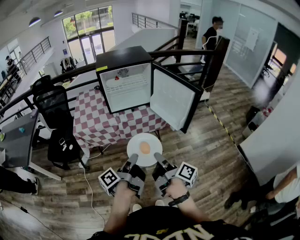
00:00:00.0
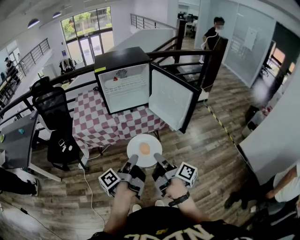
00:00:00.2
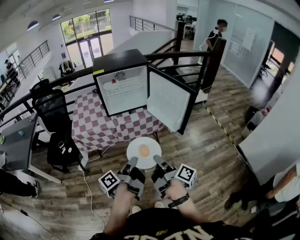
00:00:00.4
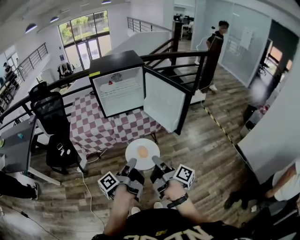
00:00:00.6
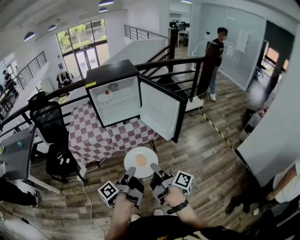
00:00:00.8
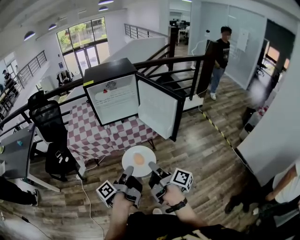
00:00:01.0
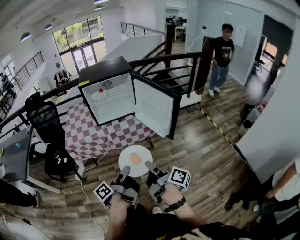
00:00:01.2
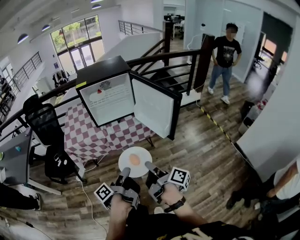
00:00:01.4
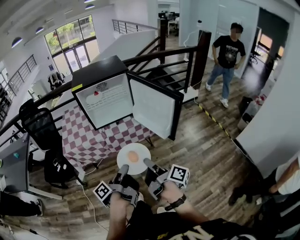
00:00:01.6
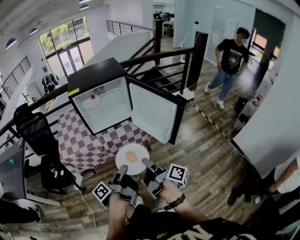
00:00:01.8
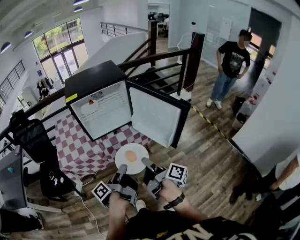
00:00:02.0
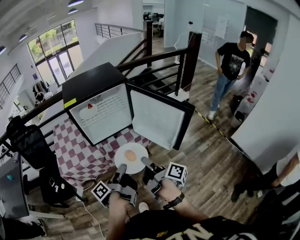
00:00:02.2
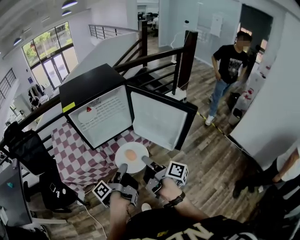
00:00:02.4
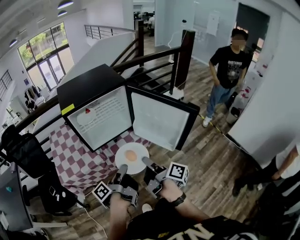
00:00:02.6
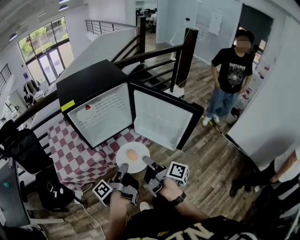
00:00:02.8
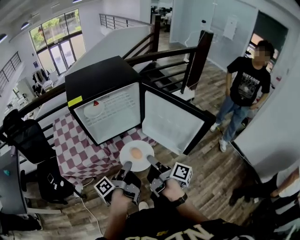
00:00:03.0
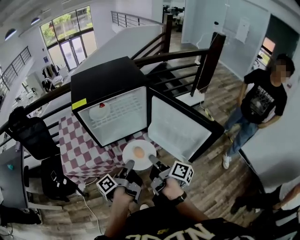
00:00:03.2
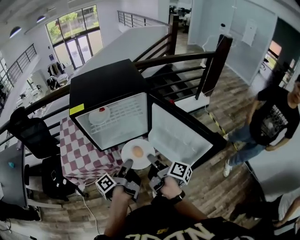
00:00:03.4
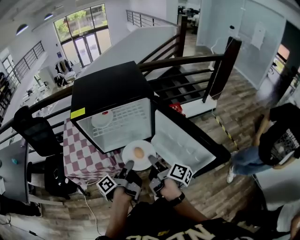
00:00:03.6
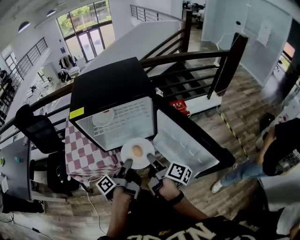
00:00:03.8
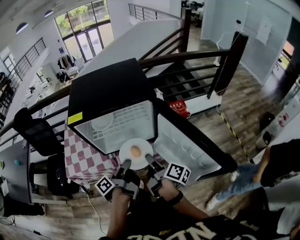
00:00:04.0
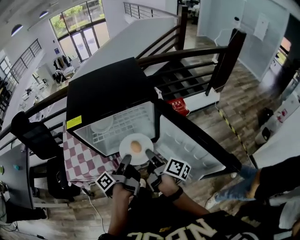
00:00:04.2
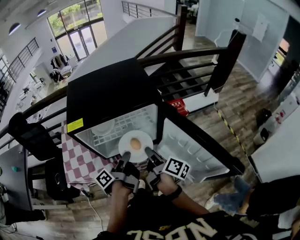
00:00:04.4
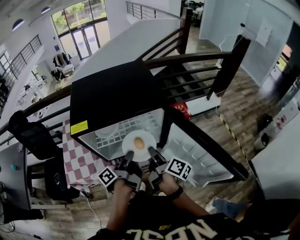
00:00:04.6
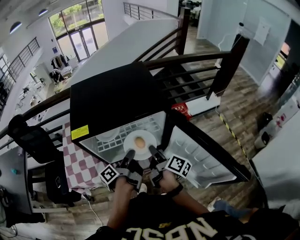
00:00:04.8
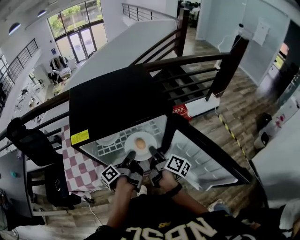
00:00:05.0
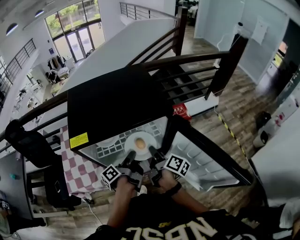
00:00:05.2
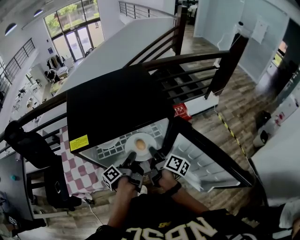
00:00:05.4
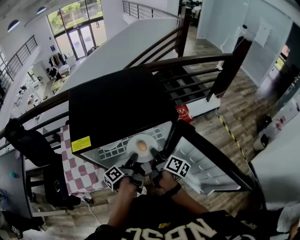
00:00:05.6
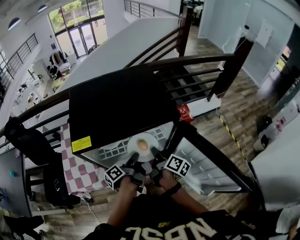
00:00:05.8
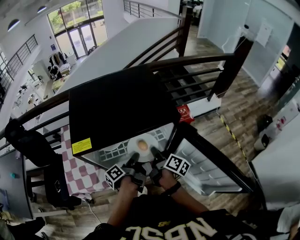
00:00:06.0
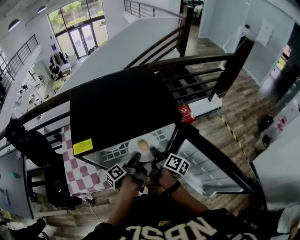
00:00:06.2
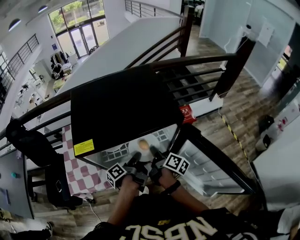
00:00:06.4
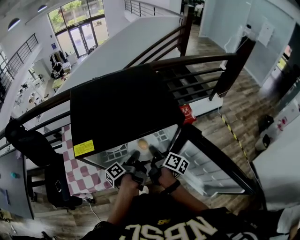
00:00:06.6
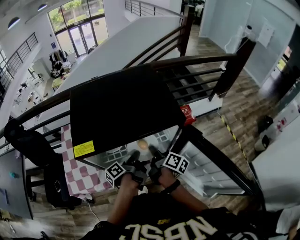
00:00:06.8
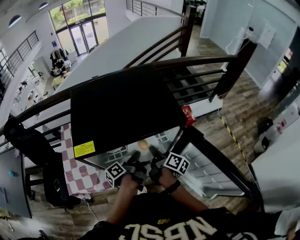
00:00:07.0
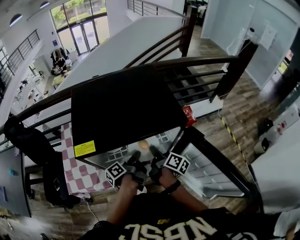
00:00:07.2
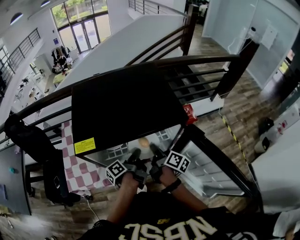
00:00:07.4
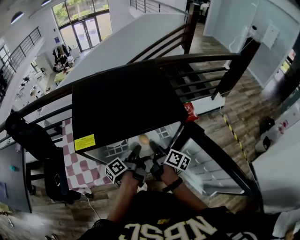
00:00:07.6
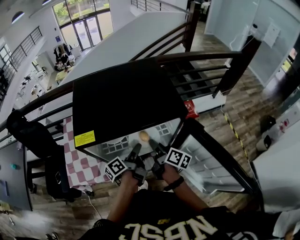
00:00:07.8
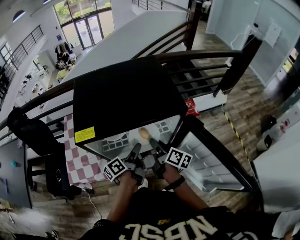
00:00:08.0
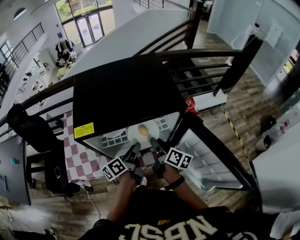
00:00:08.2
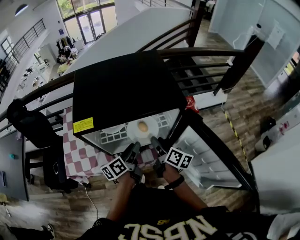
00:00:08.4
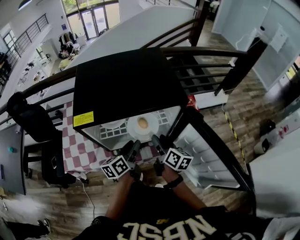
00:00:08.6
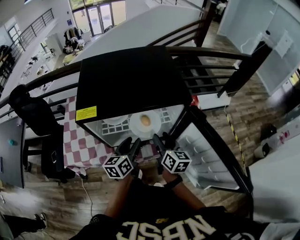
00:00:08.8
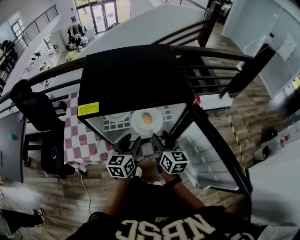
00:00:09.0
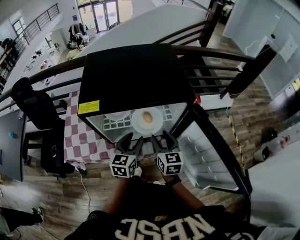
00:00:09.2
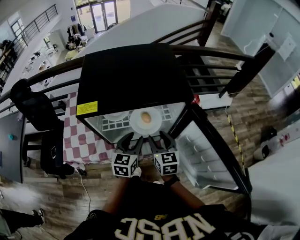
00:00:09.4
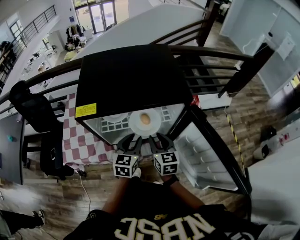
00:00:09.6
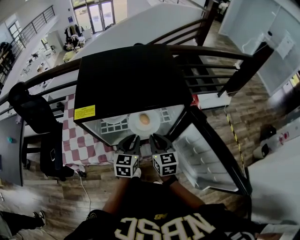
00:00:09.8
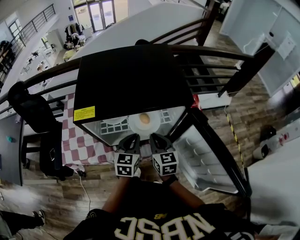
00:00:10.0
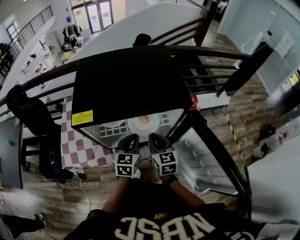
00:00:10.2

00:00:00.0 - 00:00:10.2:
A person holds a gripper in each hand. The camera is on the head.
00:00:00.0 - 00:00:01.4: The right gripper changes place by about 5 cm.
00:00:01.4 - 00:00:03.0: The right gripper moves roughly 25 cm.
00:00:03.0 - 00:00:04.4: The right gripper changes place by some 25 cm.
00:00:04.4 - 00:00:05.8: The right gripper moves roughly 10 cm.
00:00:07.2 - 00:00:08.8: The right gripper shifts by roughly 5 cm, twists roughly 40 degrees counterclockwise, seen from behind, and opens.
00:00:08.8 - 00:00:10.2: The right gripper swivels about 30 degrees, and closes its fingers.

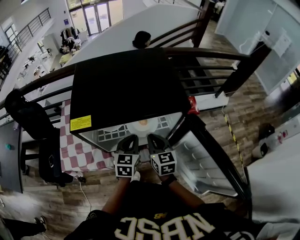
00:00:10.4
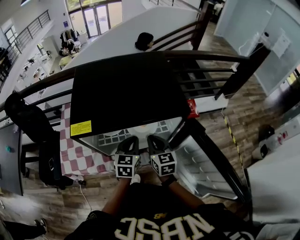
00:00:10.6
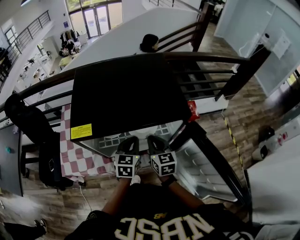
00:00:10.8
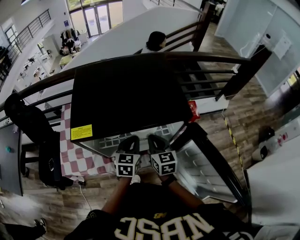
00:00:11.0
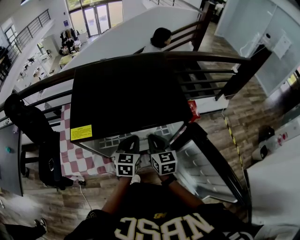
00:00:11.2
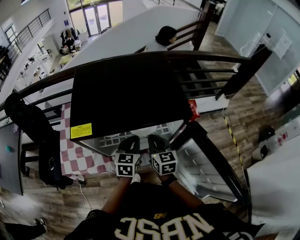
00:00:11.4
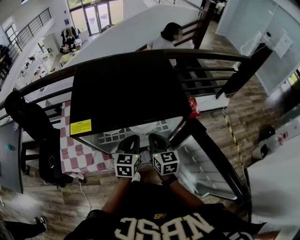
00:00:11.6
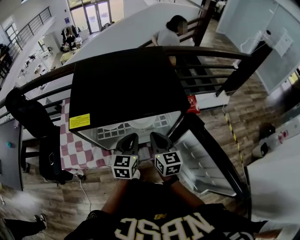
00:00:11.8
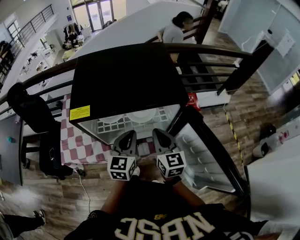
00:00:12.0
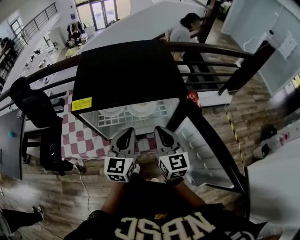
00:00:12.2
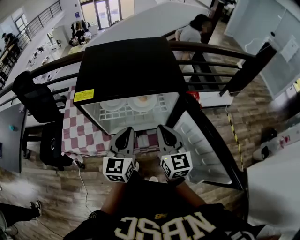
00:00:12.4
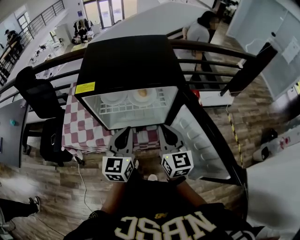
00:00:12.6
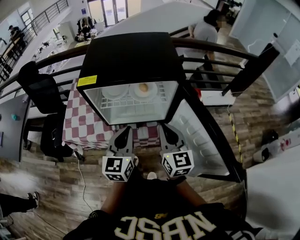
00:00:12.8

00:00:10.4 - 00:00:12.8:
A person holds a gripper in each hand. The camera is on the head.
00:00:11.6 - 00:00:12.8: The right gripper shifts by about 20 cm.

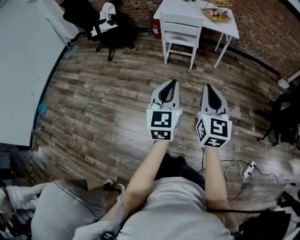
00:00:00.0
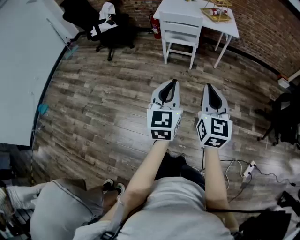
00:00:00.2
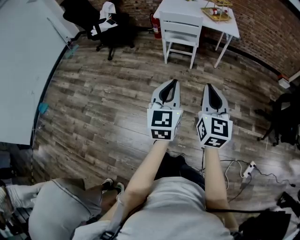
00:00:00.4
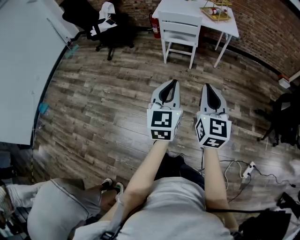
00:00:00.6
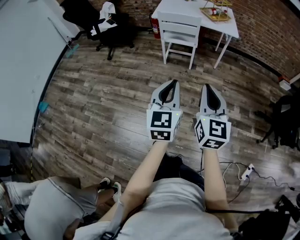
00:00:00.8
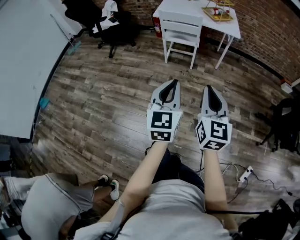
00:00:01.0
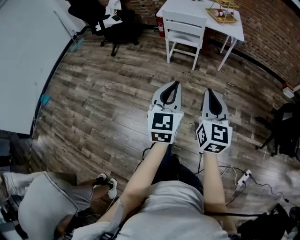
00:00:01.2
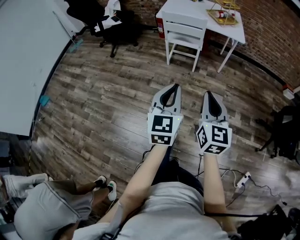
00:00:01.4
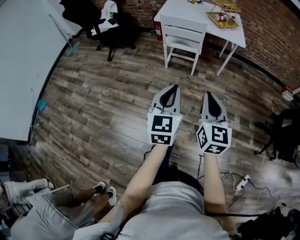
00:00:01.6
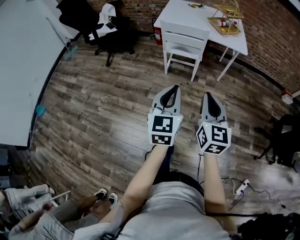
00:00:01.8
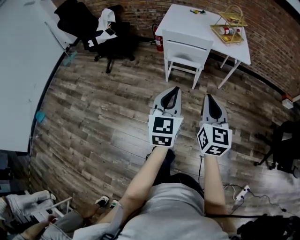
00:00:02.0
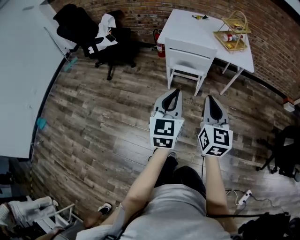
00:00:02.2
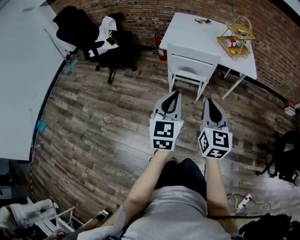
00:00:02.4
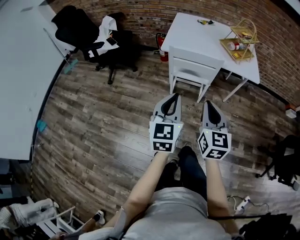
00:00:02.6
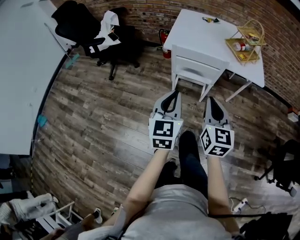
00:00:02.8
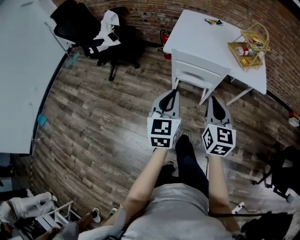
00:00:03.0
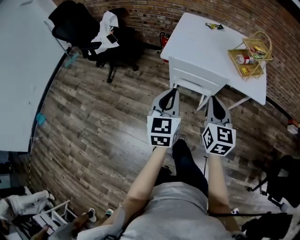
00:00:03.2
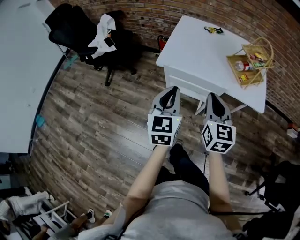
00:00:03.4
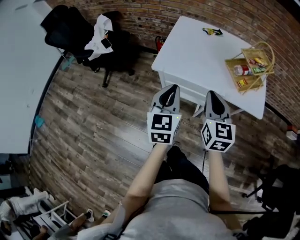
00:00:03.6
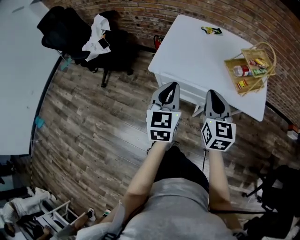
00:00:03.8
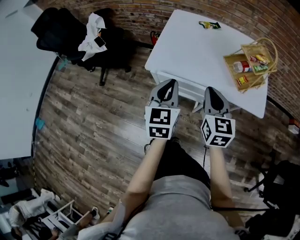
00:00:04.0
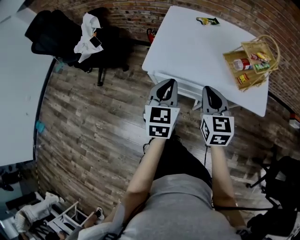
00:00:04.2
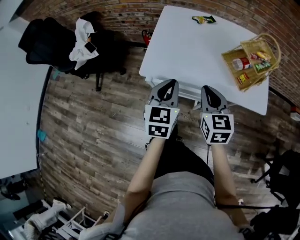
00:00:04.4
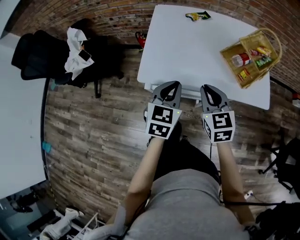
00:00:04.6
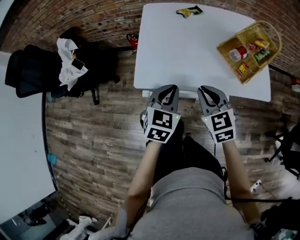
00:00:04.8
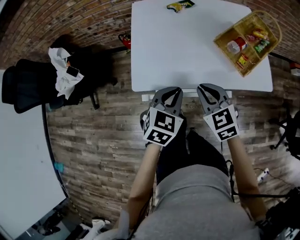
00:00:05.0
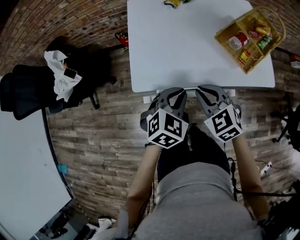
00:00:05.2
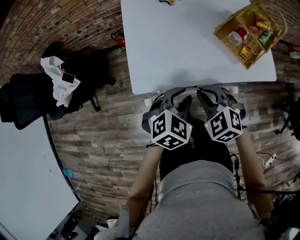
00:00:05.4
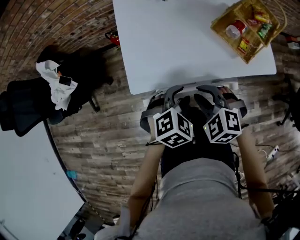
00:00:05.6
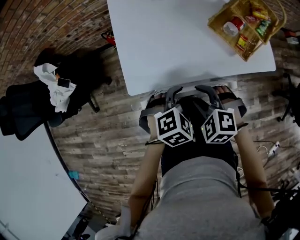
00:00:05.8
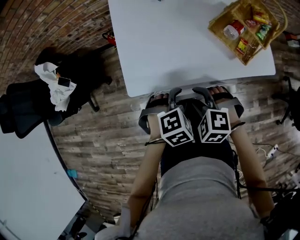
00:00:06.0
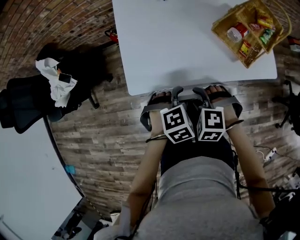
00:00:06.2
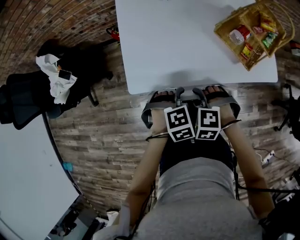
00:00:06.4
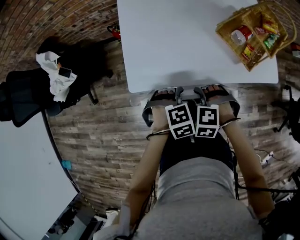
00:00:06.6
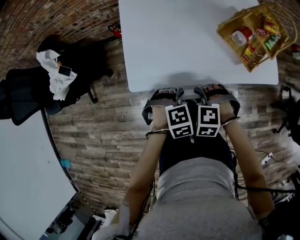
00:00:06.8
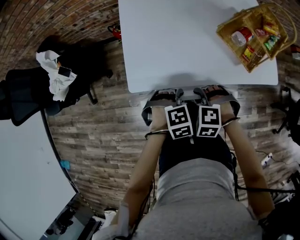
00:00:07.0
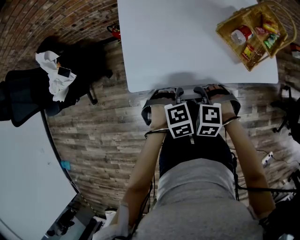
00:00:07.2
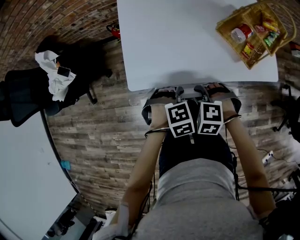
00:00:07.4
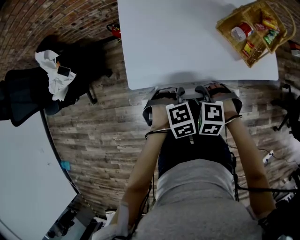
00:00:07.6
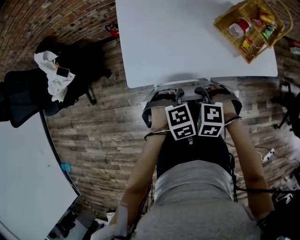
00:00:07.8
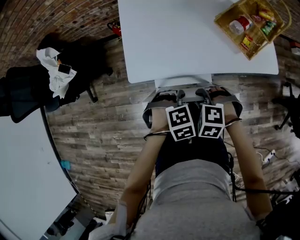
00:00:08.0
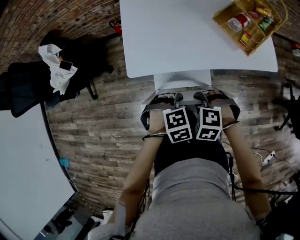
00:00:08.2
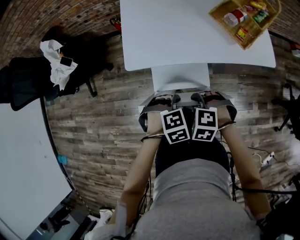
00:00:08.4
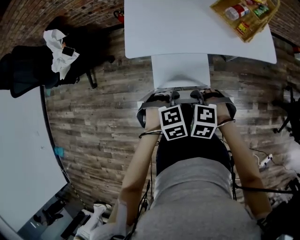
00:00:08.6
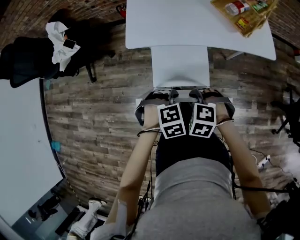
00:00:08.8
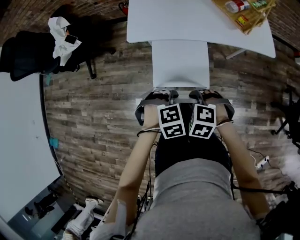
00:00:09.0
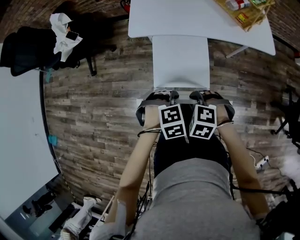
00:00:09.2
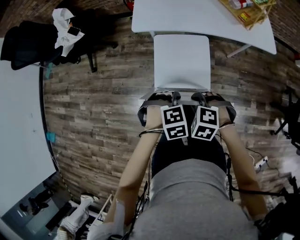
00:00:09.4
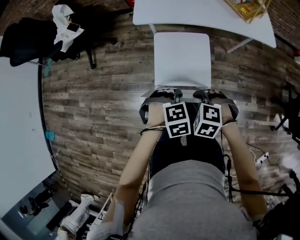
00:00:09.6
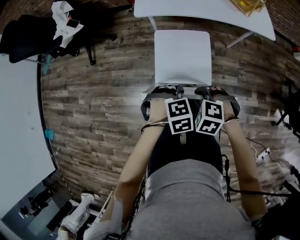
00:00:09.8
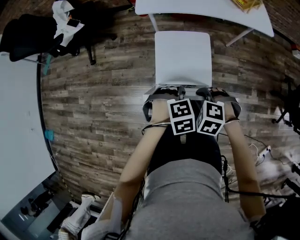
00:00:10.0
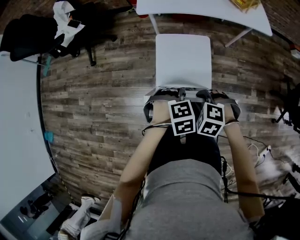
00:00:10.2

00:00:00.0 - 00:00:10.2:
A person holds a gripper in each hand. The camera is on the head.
00:00:00.0 - 00:00:01.4: The grippers both shift to the right by some 5 cm.
00:00:01.4 - 00:00:03.0: The pair of grippers is taken forward, about 40 cm.
00:00:03.0 - 00:00:04.4: The grippers both shift forward by approximately 30 cm.
00:00:04.4 - 00:00:05.8: The grippers both shift downward by about 10 cm. The right gripper tilts its fingers some 30 degrees downward, and opens up, while the left gripper tilts its fingers about 40 degrees downward, and opens its fingers.
00:00:05.8 - 00:00:07.2: The two grippers go approximately 5 cm downward. The right gripper closes up.
00:00:07.2 - 00:00:08.8: The right gripper shifts by approximately 20 cm. The left gripper changes place by approximately 20 cm.
00:00:08.8 - 00:00:10.2: The left gripper changes place by about 20 cm. The right gripper ends up some 20 cm from where it was.

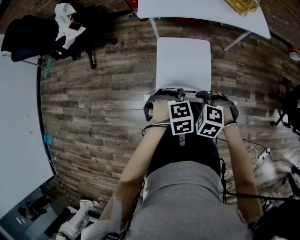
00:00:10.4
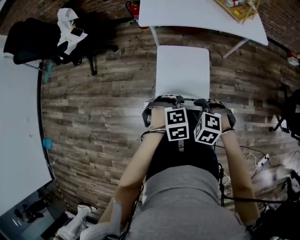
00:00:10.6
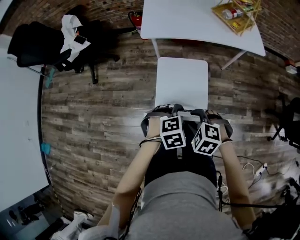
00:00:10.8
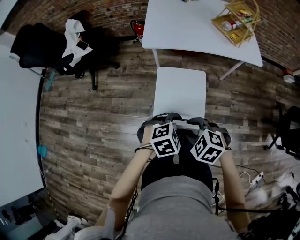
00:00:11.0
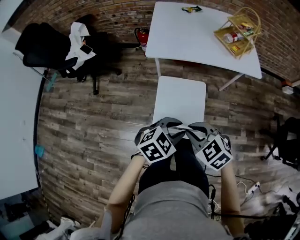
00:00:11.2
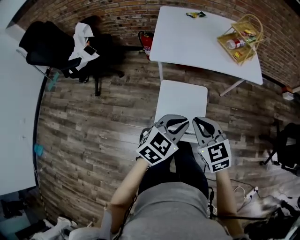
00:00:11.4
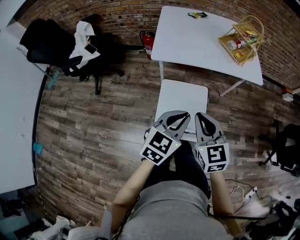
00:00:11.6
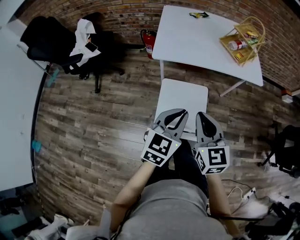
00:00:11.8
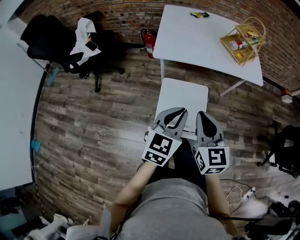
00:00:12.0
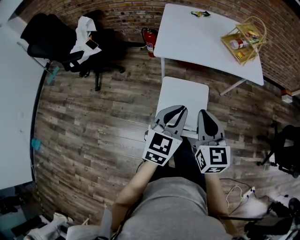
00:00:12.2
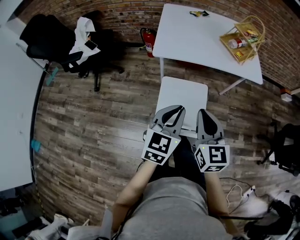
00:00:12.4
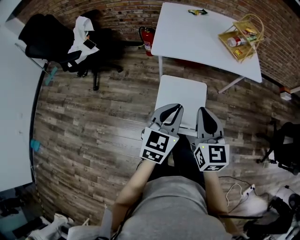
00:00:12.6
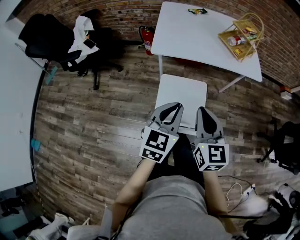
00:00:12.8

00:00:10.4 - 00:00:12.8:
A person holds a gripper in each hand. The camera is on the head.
00:00:10.4 - 00:00:11.6: The two grippers go some 20 cm upward. The left gripper angles its fingers upward, by approximately 50 degrees, and opens and closes again. The right gripper angles its fingers upward, by some 50 degrees.
00:00:11.6 - 00:00:12.8: There are only small adjustments of the grippers.
